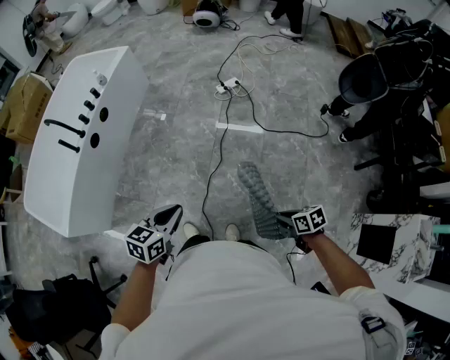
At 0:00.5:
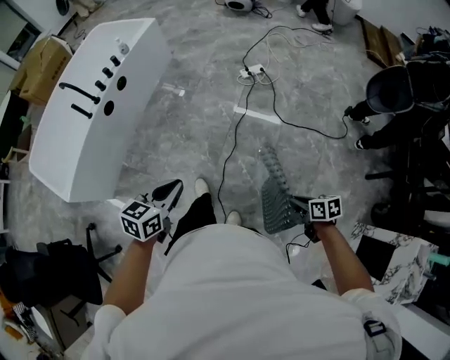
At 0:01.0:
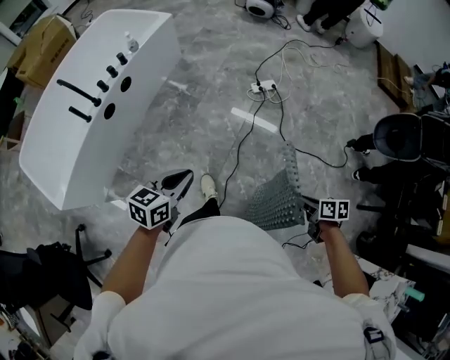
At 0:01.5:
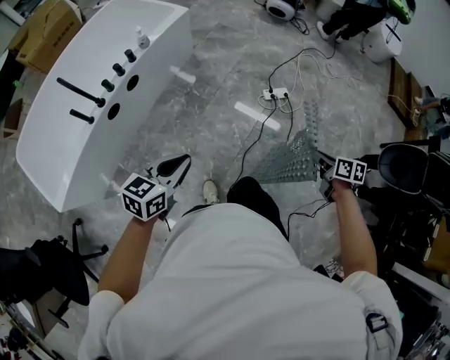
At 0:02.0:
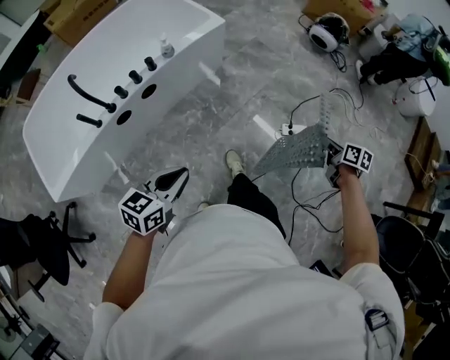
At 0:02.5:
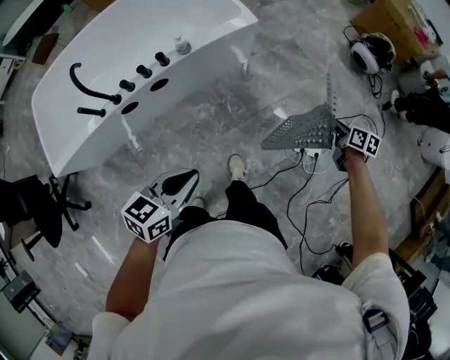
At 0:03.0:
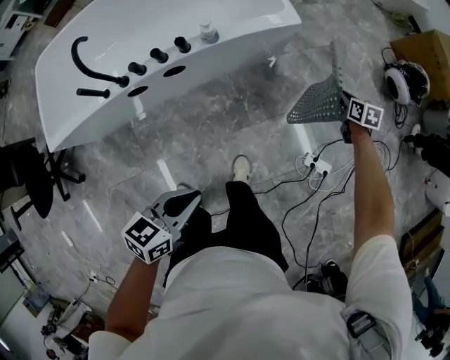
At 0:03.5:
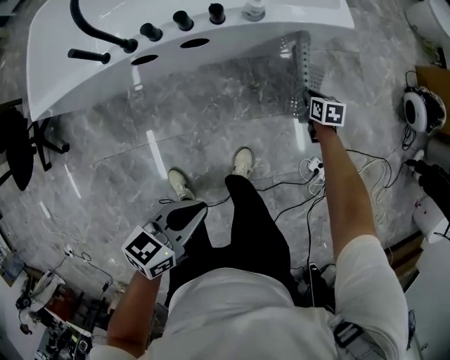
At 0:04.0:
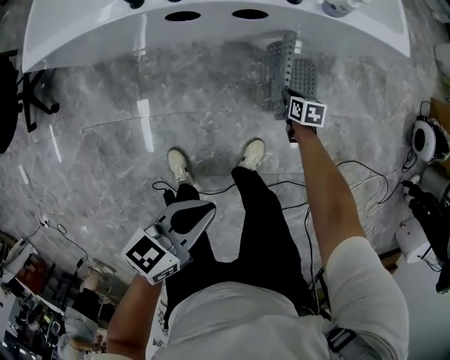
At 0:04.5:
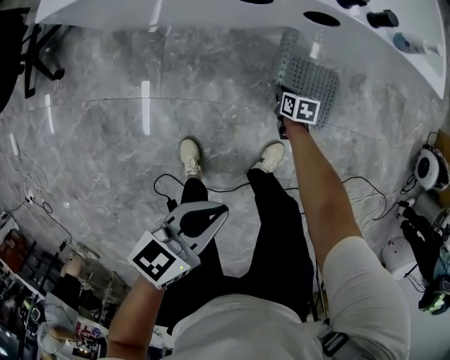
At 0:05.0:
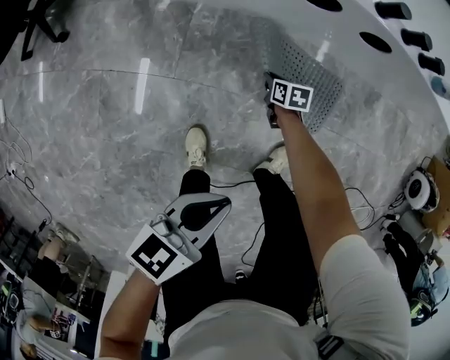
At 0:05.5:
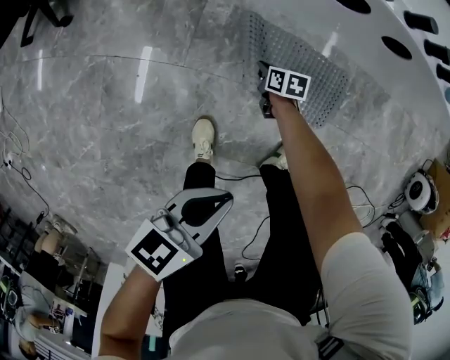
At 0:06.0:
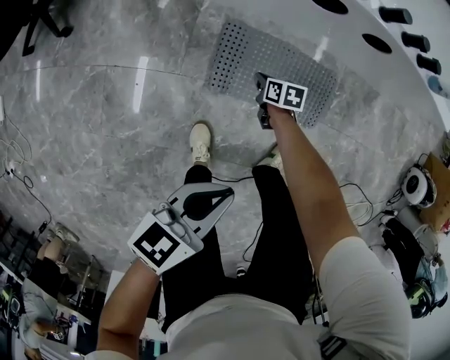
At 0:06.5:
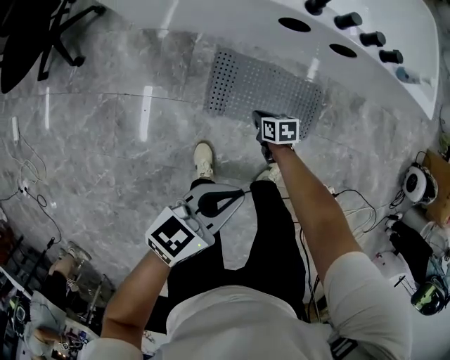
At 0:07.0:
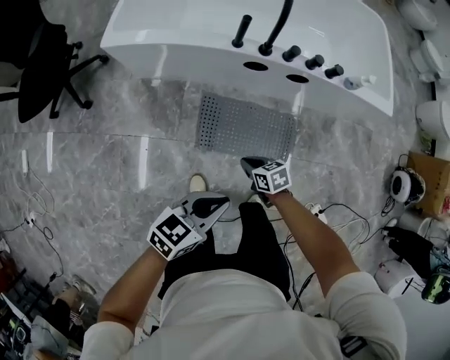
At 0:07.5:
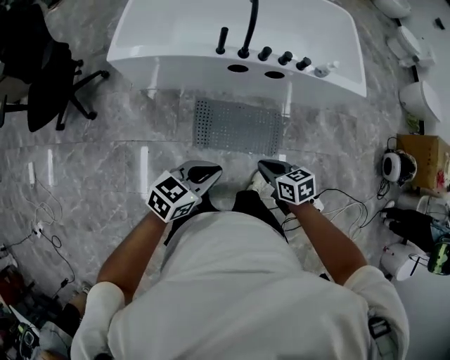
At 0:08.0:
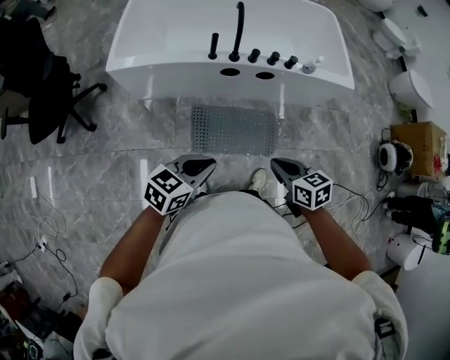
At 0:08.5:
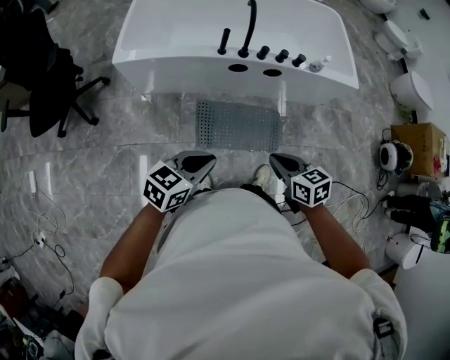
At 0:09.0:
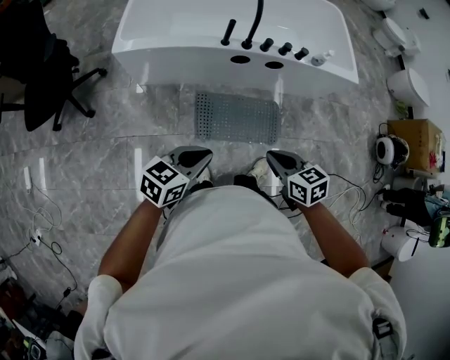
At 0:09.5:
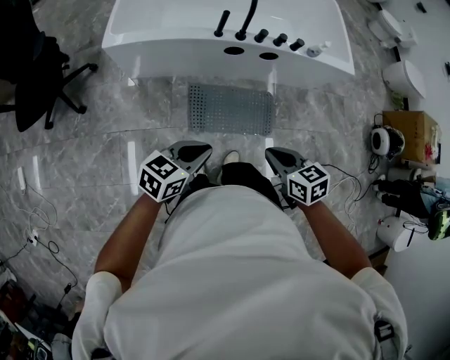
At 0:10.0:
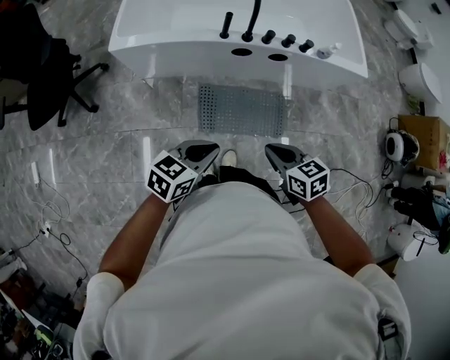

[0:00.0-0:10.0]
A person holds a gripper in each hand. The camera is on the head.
0:00.0 to 0:02.0: Both grippers are carried forward, roughly 70 cm. The left gripper changes its angle by approximately 30 degrees.
0:02.0 to 0:04.0: The left gripper goes approximately 20 cm downward, and turns by some 40 degrees, while the right gripper moves some 70 cm, and twists roughly 50 degrees counterclockwise, seen from behind.
0:04.0 to 0:06.0: The left gripper moves to the left, roughly 20 cm. Meanwhile the right gripper travels to the left by approximately 40 cm.
0:06.0 to 0:08.0: The left gripper is displaced upward by approximately 25 cm, and swivels about 30 degrees, while the right gripper shifts approximately 60 cm upward, and rotates some 20 degrees.
0:08.0 to 0:10.0: The right gripper shifts roughly 5 cm to the left.

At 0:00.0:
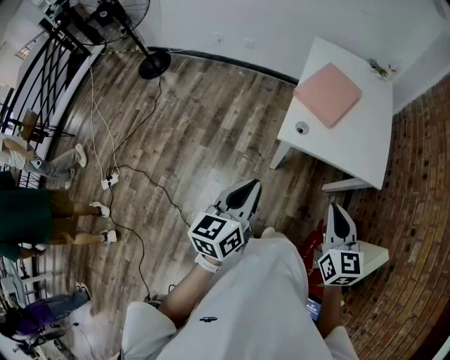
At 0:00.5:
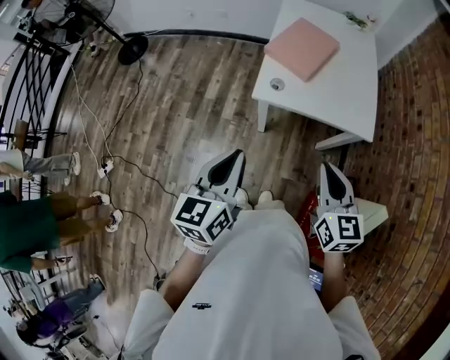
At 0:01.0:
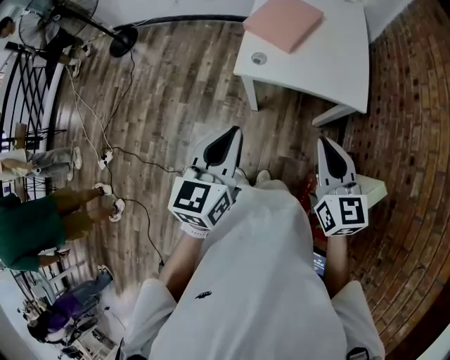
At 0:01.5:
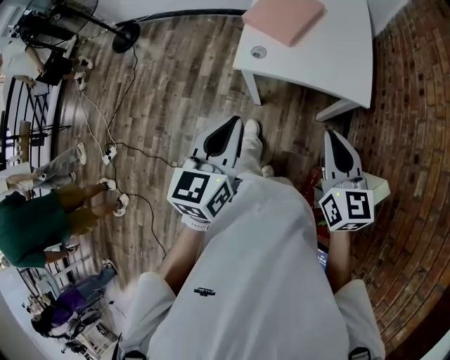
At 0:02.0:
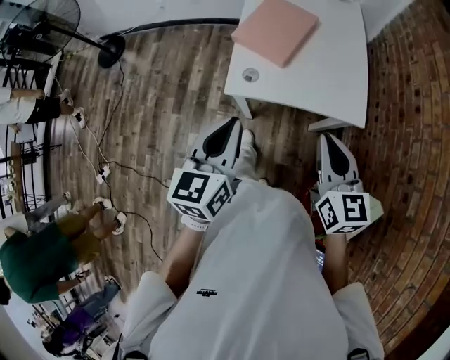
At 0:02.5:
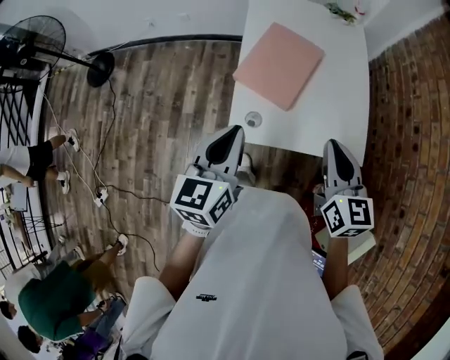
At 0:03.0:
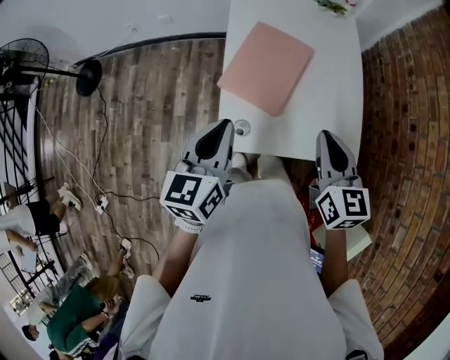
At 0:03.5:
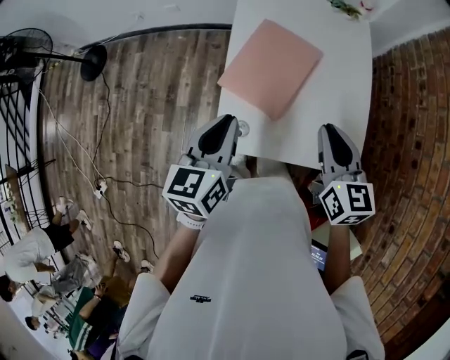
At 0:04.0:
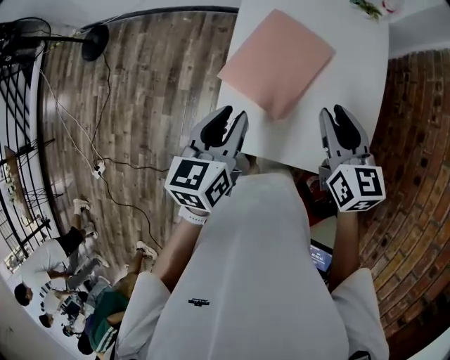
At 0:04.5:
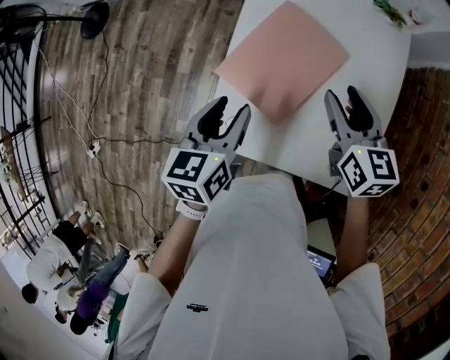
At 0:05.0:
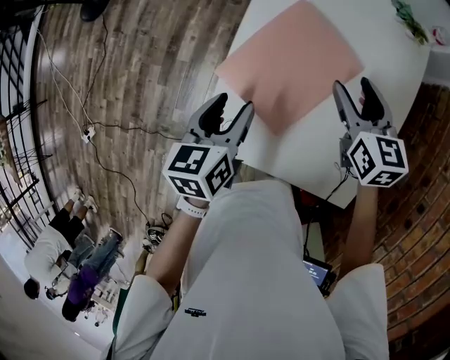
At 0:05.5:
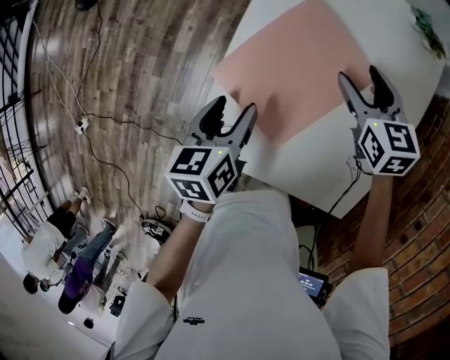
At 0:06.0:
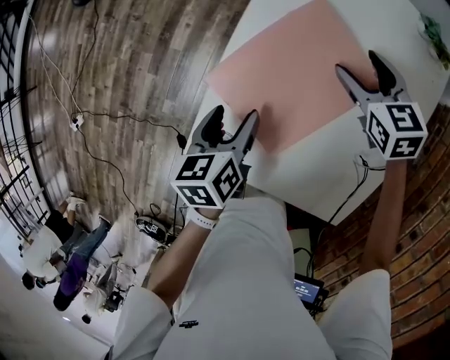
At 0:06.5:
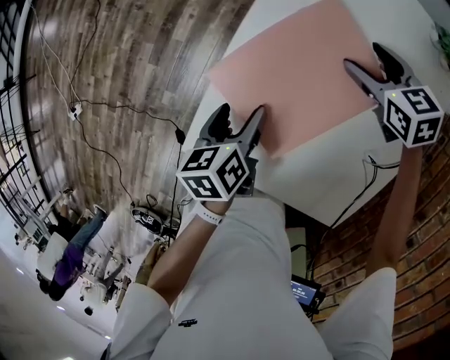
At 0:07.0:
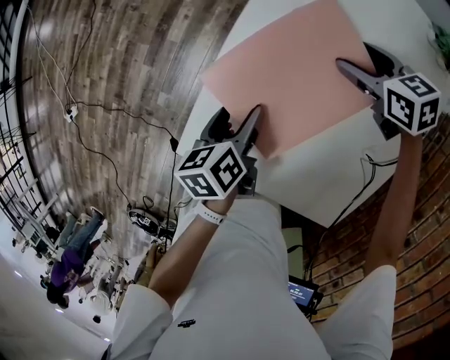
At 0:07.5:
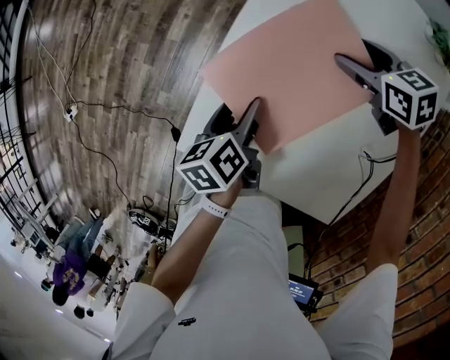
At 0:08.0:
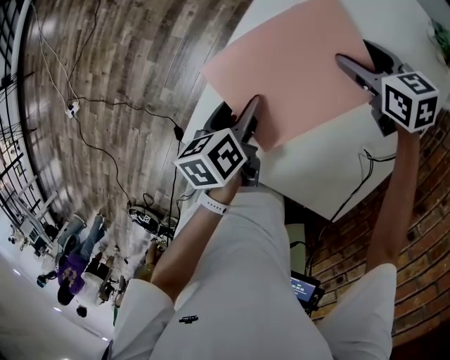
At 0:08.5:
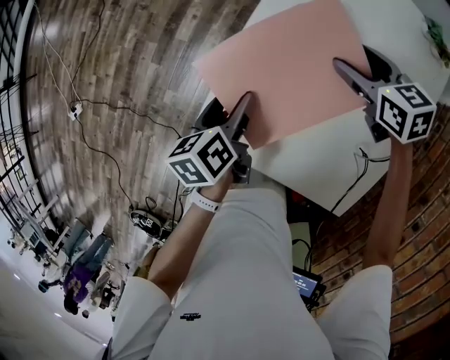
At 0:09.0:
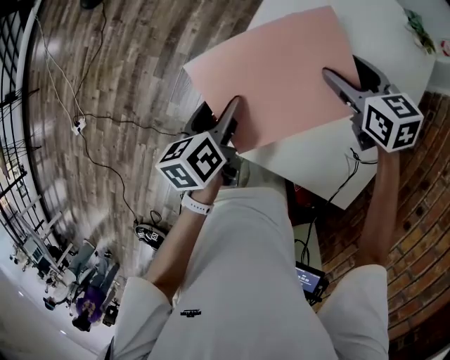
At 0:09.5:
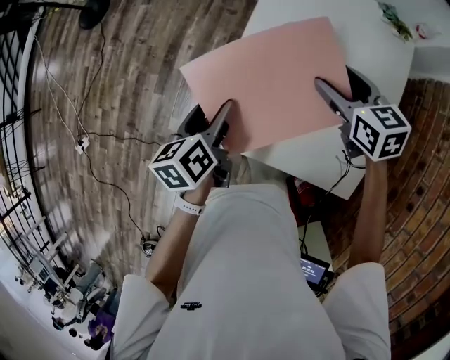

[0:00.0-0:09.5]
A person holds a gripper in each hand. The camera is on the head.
0:00.0 to 0:02.0: Both grippers travel together to the right and forward, roughly 15 cm.
0:02.0 to 0:04.0: Both grippers travel together forward, roughly 30 cm.
0:04.0 to 0:05.5: The right gripper goes approximately 25 cm forward and downward, rotates some 30 degrees, and opens. Meanwhile the left gripper is displaced downward and forward by approximately 15 cm, changes its angle by some 20 degrees, and opens up.
0:05.5 to 0:07.5: The grippers both shift downward by approximately 10 cm. The right gripper swivels about 30 degrees; the left gripper turns by approximately 30 degrees.
0:07.5 to 0:09.5: The left gripper is displaced upward and to the left by roughly 15 cm. Meanwhile the right gripper shifts about 20 cm upward, backward and to the left, and changes its angle by approximately 20 degrees.

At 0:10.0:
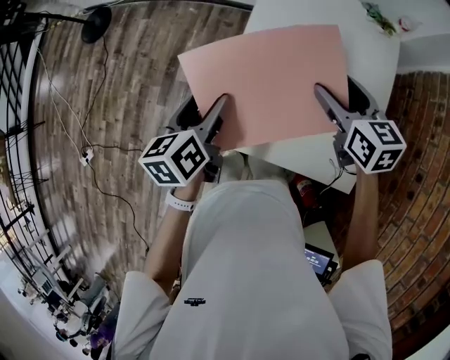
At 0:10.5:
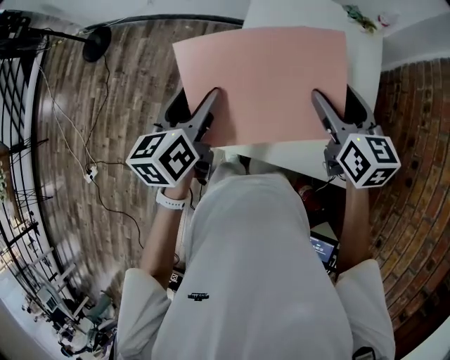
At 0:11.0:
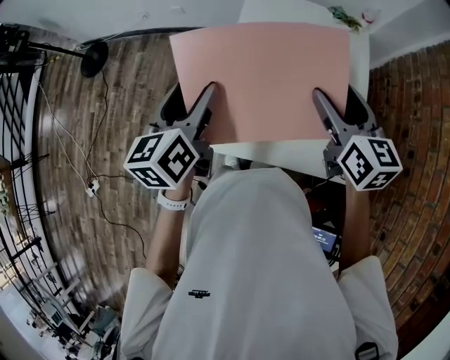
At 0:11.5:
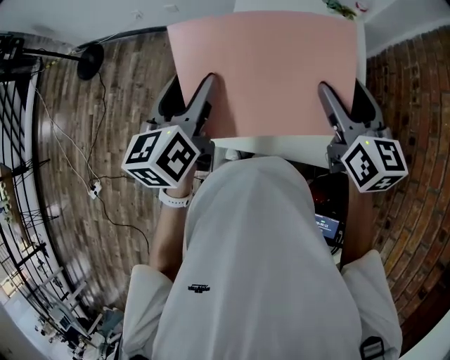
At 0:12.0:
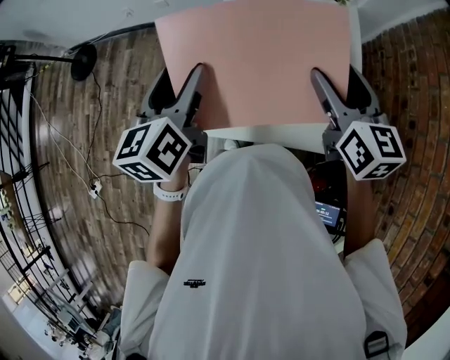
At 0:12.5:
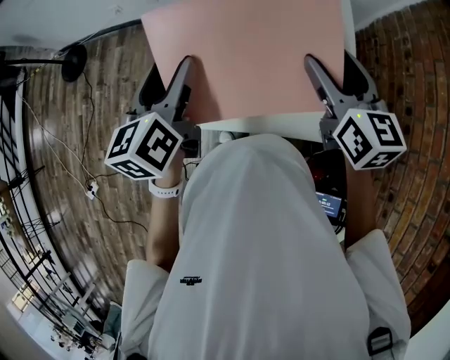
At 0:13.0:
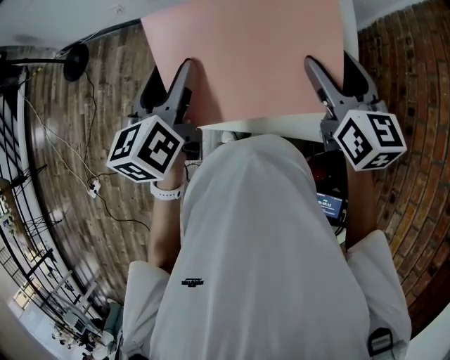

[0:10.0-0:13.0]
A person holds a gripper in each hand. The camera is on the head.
0:10.0 to 0:11.5: The left gripper goes about 15 cm upward, and swivels some 20 degrees; the right gripper goes some 15 cm upward and backward, and changes its angle by about 20 degrees.
0:11.5 to 0:13.0: There are only small adjustments of the grippers.

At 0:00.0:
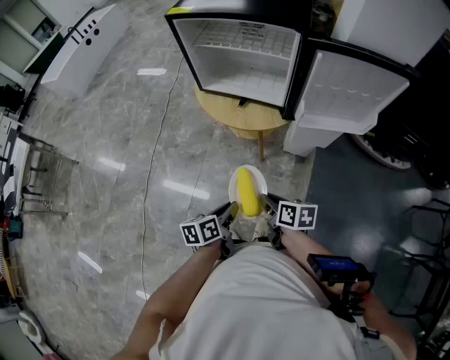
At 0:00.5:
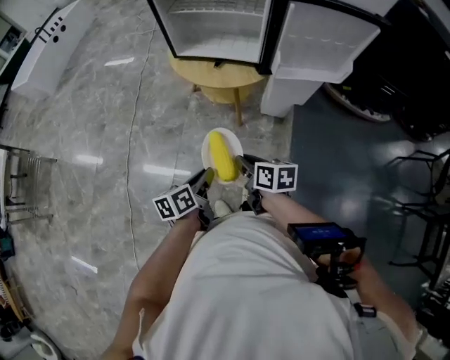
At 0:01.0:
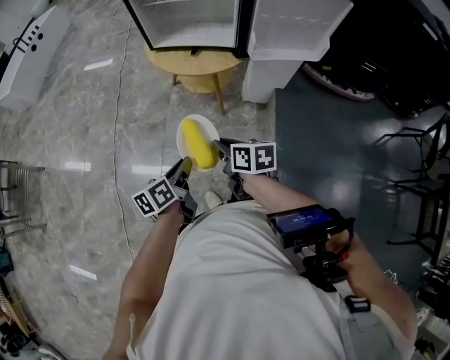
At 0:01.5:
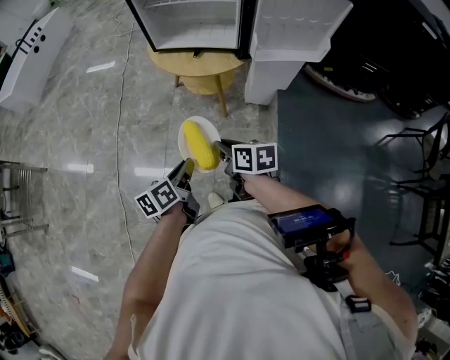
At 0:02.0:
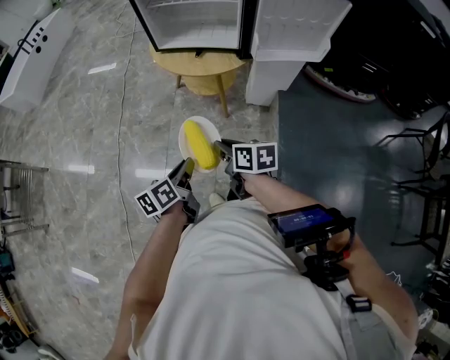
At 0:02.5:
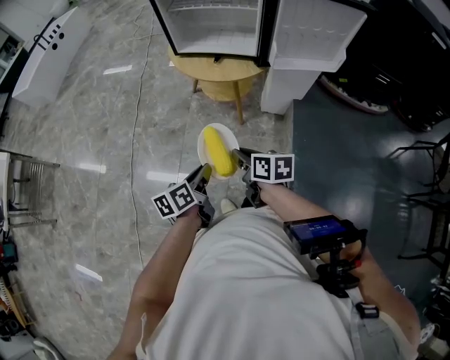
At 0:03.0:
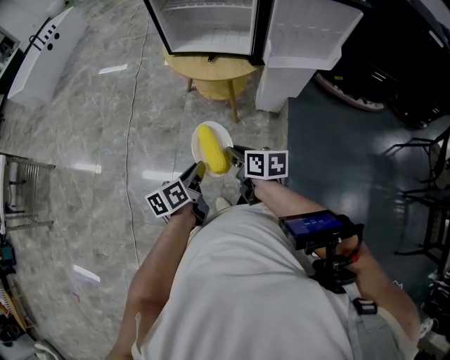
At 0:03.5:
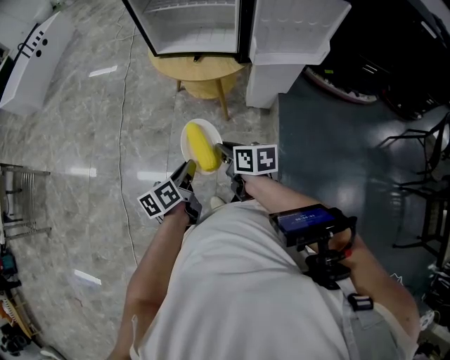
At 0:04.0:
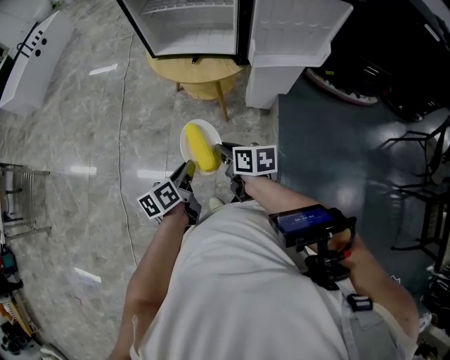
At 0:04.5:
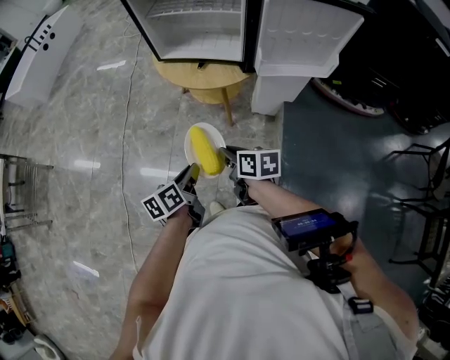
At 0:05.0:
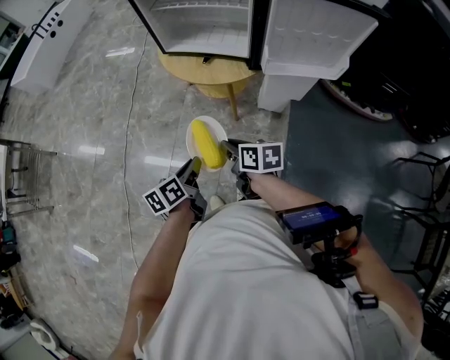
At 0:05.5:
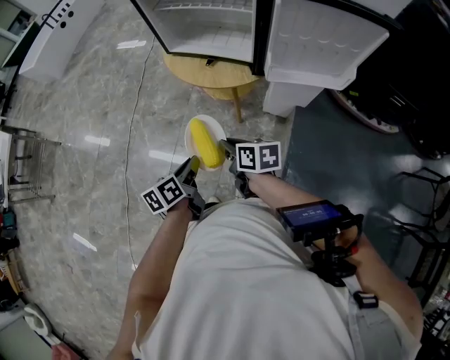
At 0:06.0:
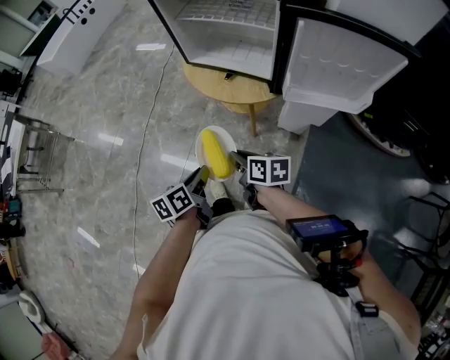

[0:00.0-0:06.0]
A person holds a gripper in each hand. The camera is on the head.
0:00.0 to 0:02.0: The two grippers go about 10 cm to the left and backward.
0:02.0 to 0:04.0: The grippers make only small movements.
0:04.0 to 0:06.0: Both grippers travel together forward, about 10 cm.
